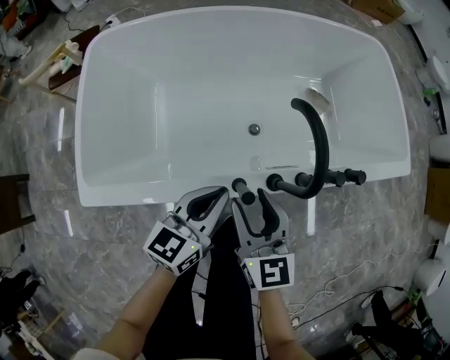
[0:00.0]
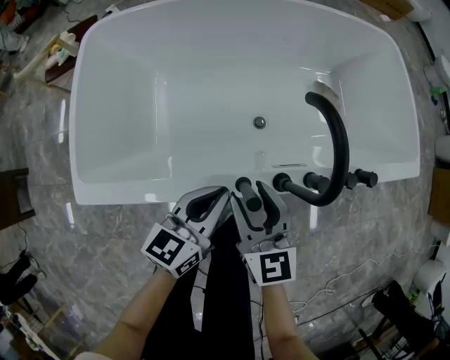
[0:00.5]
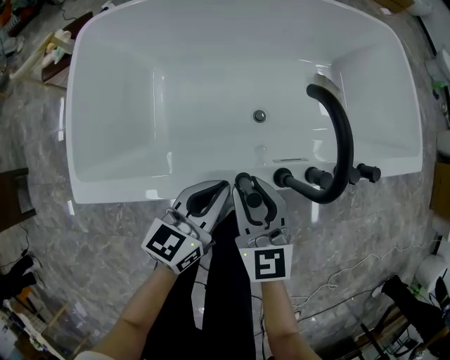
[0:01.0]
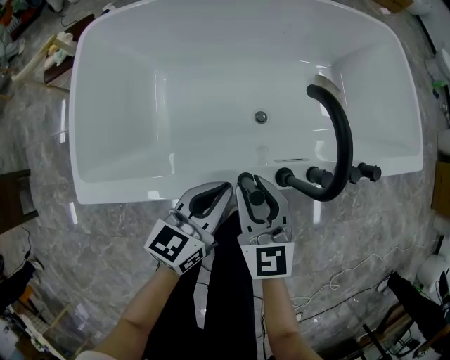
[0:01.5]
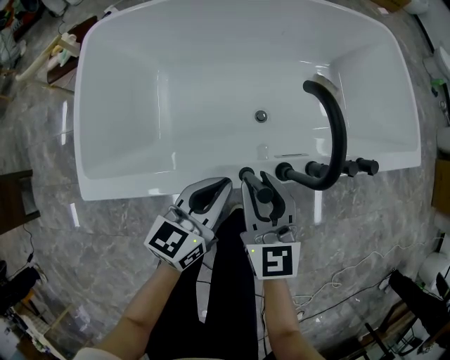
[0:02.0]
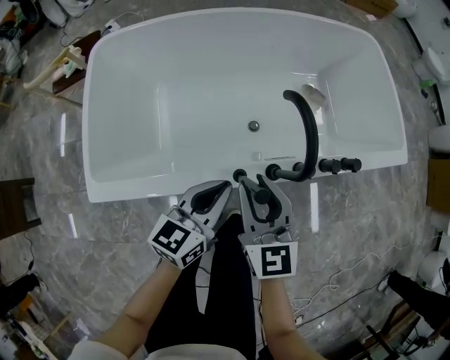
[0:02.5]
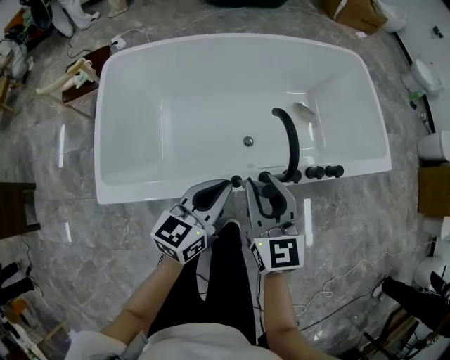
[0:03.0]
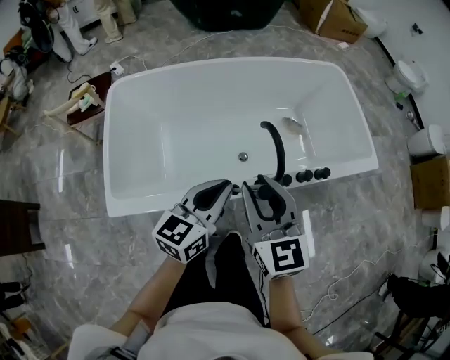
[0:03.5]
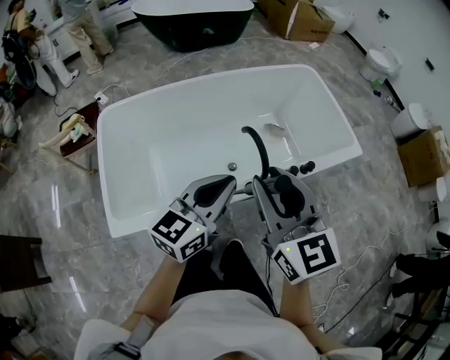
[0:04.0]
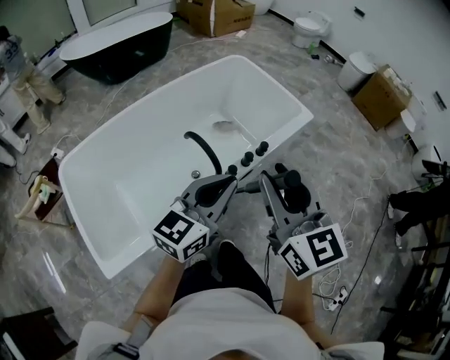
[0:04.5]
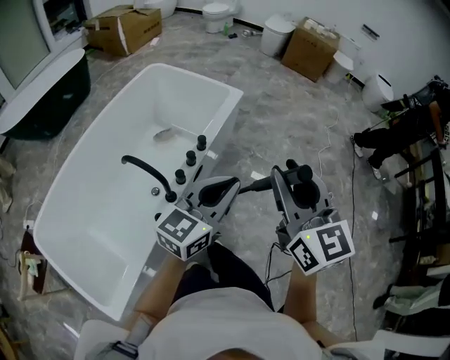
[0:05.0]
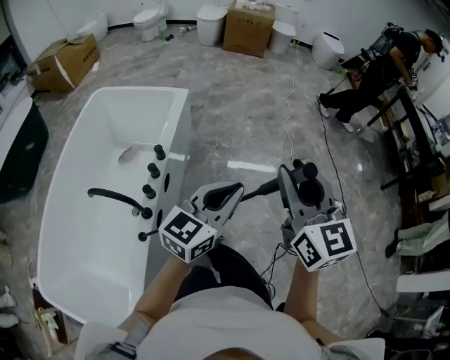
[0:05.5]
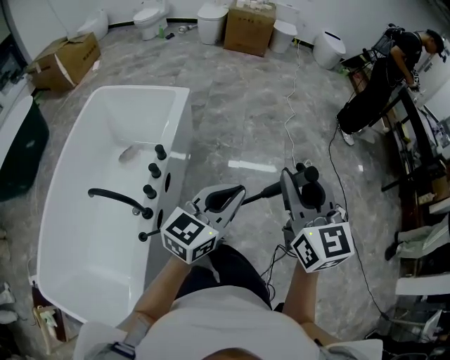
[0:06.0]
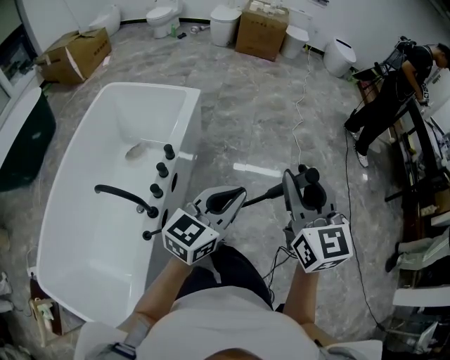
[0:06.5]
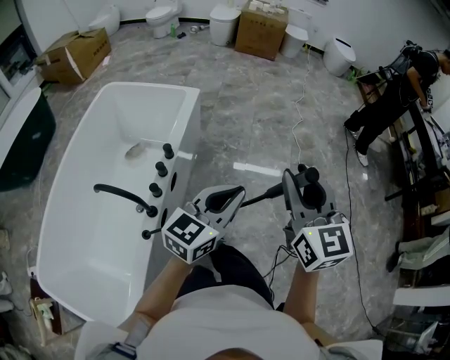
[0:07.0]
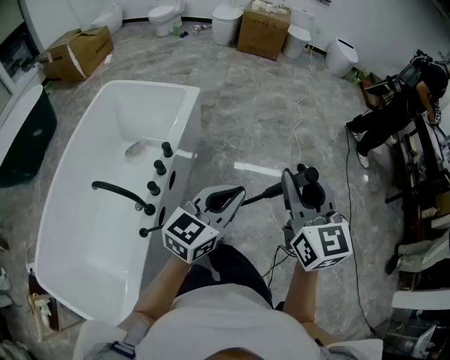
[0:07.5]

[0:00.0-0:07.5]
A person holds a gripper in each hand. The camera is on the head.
0:00.0 to 0:02.0: There are only small adjustments of the grippers.
0:02.0 to 0:04.0: The two grippers go approximately 30 cm upward. The left gripper changes its angle by roughly 20 degrees.
0:04.0 to 0:05.5: The right gripper ends up approximately 40 cm from where it was, and turns by roughly 70 degrees. Meanwhile the left gripper moves some 40 cm, and rotates approximately 70 degrees.
0:05.5 to 0:07.5: There are only small adjustments of the grippers.

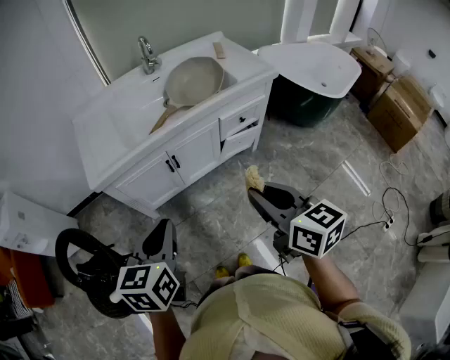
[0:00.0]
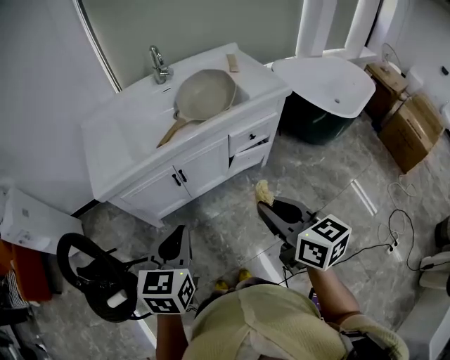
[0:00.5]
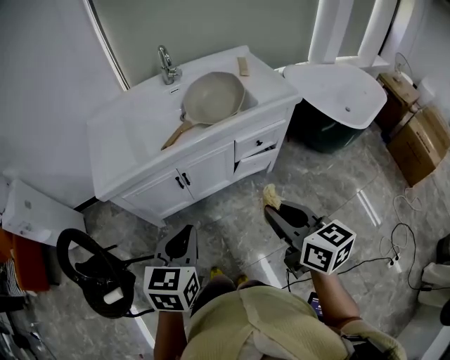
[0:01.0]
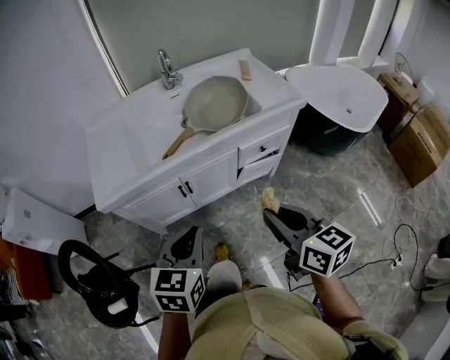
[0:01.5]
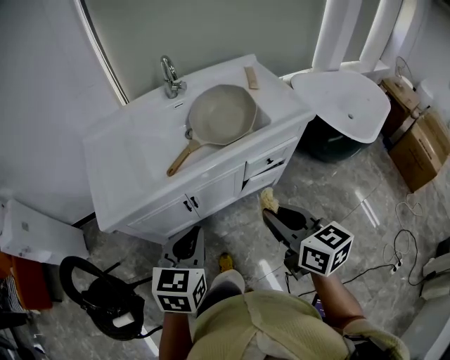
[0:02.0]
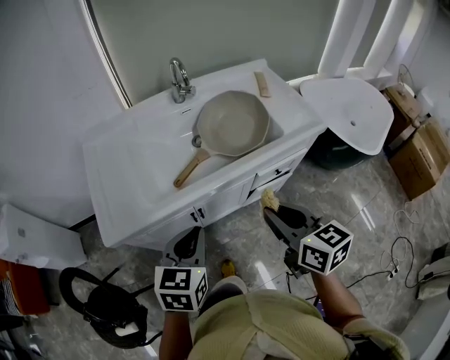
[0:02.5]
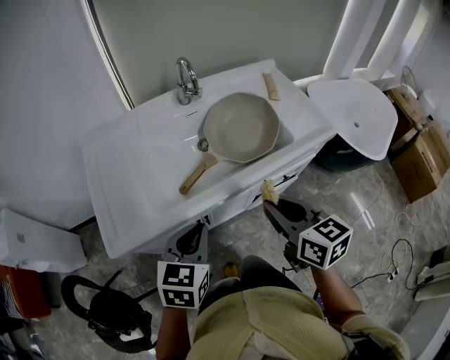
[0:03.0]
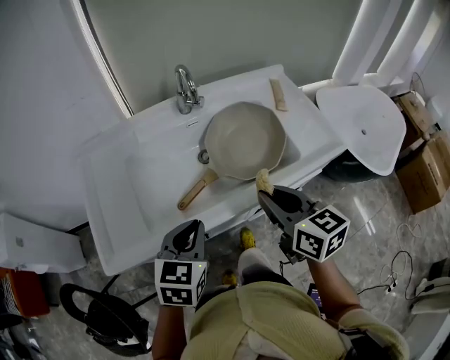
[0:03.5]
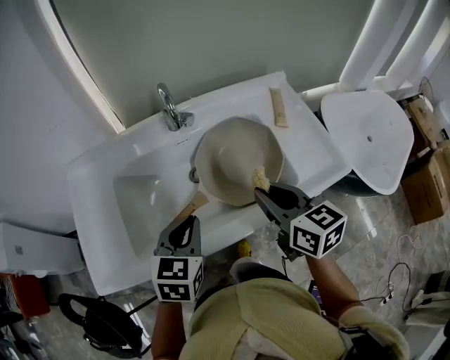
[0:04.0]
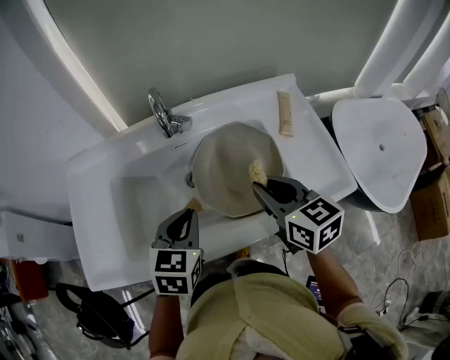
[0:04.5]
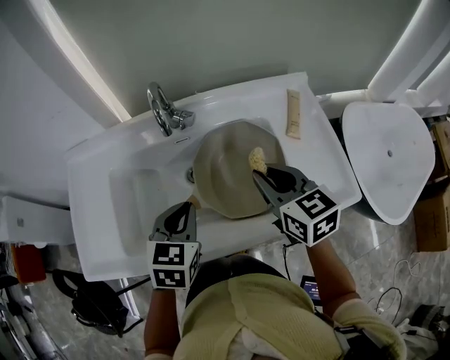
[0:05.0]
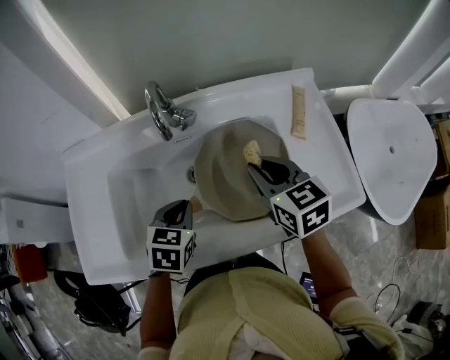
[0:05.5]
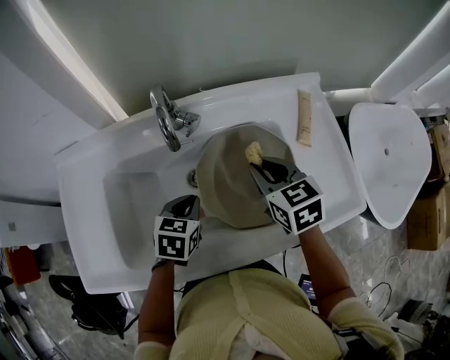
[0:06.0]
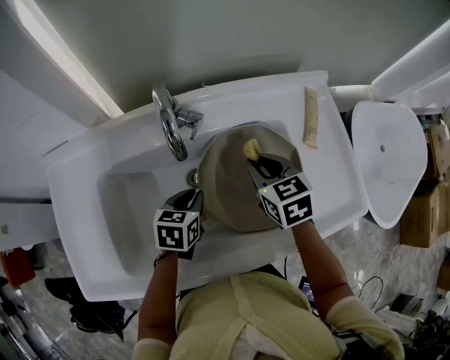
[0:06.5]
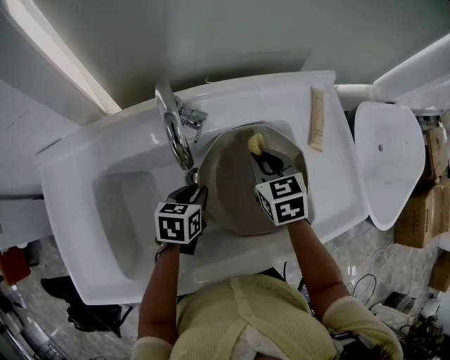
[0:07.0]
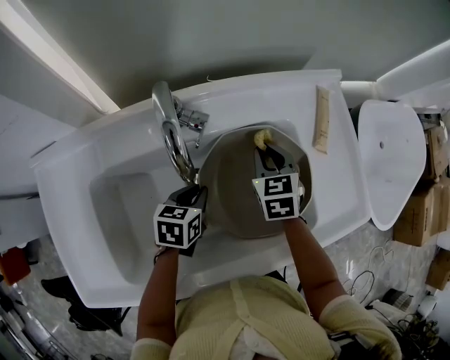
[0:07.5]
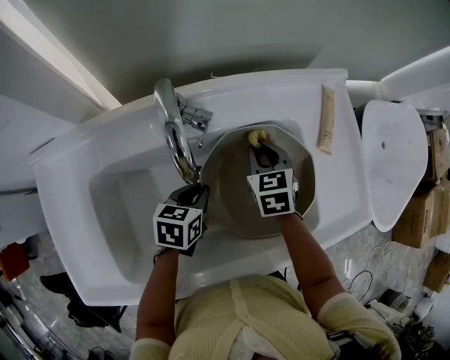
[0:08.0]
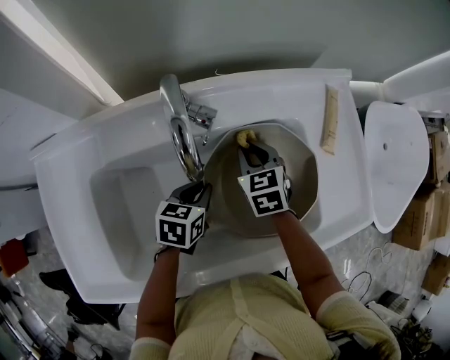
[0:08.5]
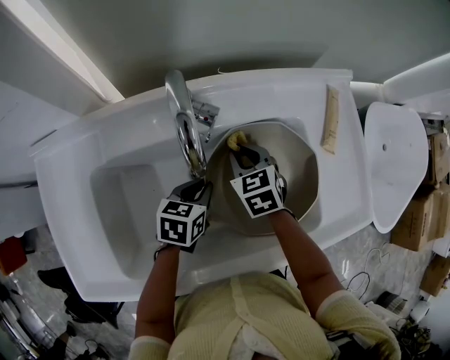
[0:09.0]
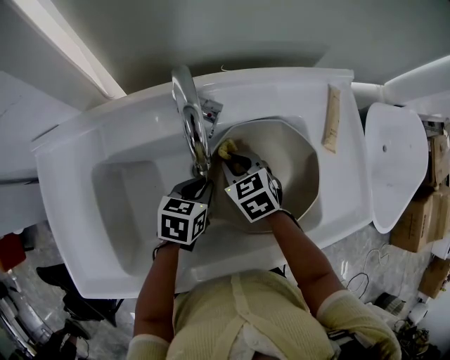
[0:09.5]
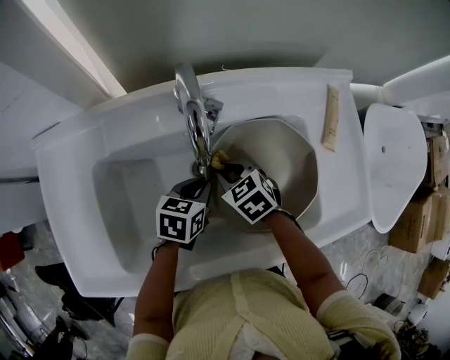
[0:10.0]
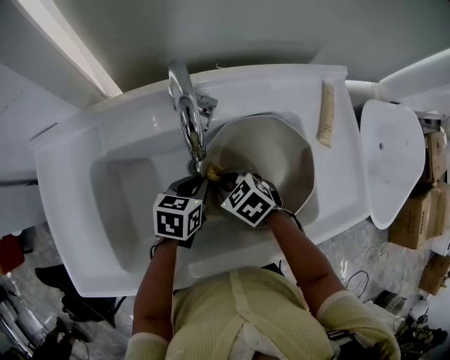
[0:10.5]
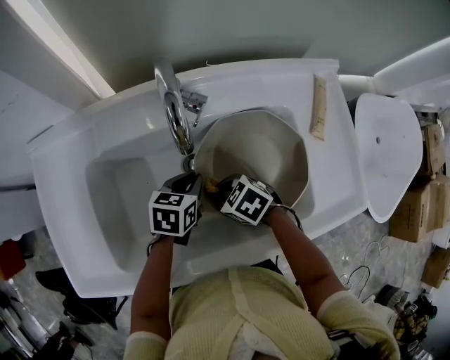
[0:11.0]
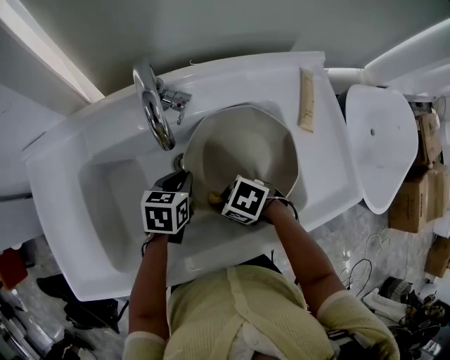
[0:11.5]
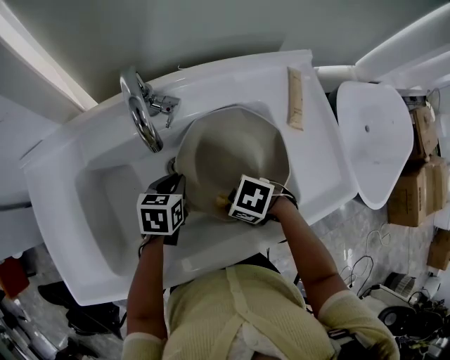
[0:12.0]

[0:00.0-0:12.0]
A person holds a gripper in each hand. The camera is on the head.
0:00.0 to 0:02.0: Both grippers move forward, approximately 15 cm.
0:02.0 to 0:04.0: Both grippers travel together forward, some 30 cm.
0:04.0 to 0:06.0: Both grippers move forward and downward, roughly 20 cm. The right gripper rotates about 20 degrees.
0:06.0 to 0:08.0: The right gripper goes some 15 cm downward and forward, while the left gripper goes about 10 cm downward and forward.
0:08.0 to 0:10.0: The right gripper moves to the left and backward, about 15 cm, and swivels some 30 degrees.
0:10.0 to 0:12.0: The right gripper moves roughly 15 cm, and rotates about 40 degrees.

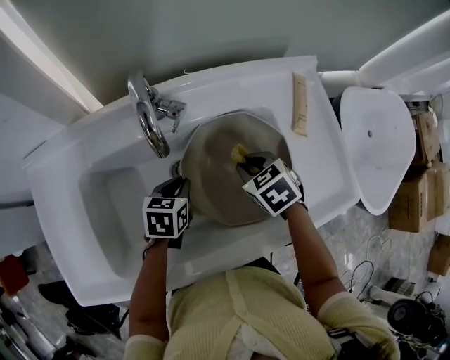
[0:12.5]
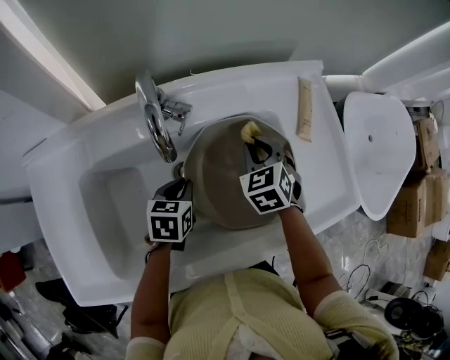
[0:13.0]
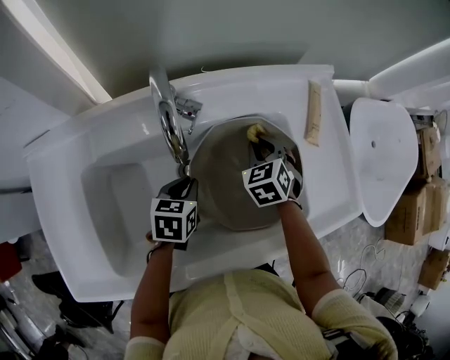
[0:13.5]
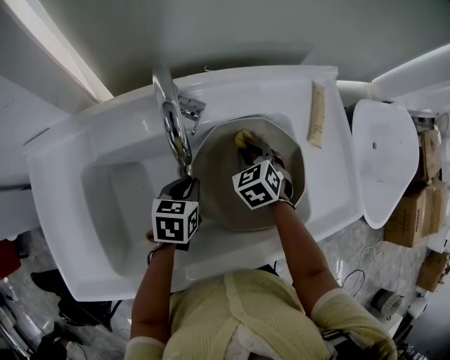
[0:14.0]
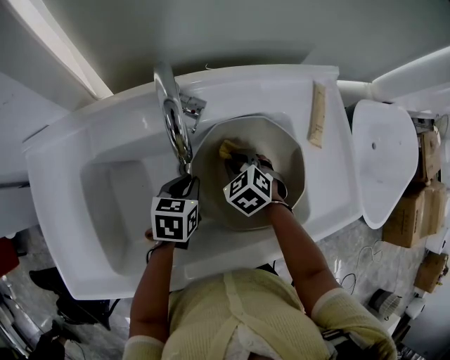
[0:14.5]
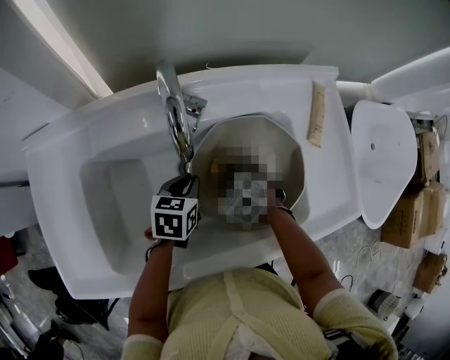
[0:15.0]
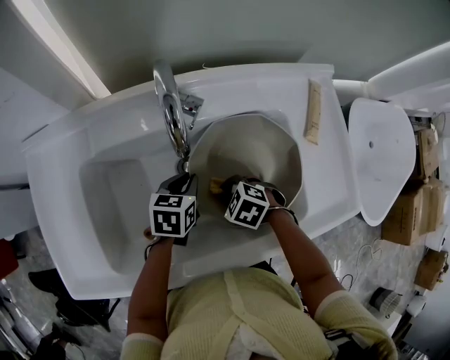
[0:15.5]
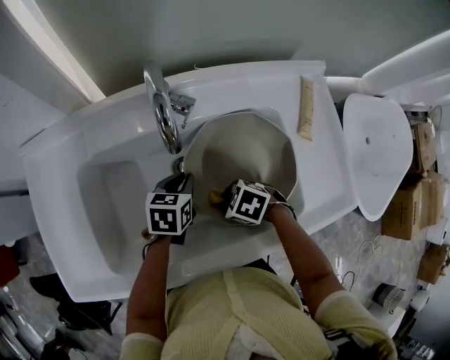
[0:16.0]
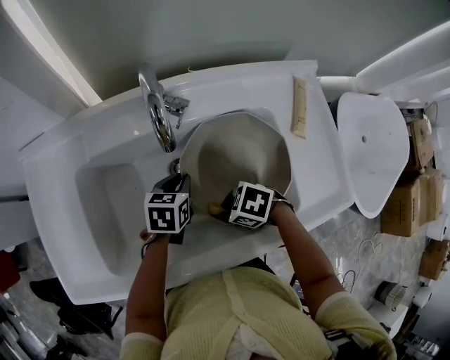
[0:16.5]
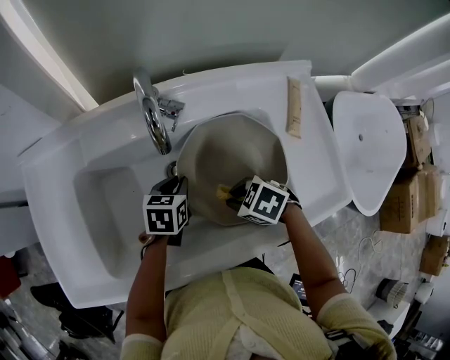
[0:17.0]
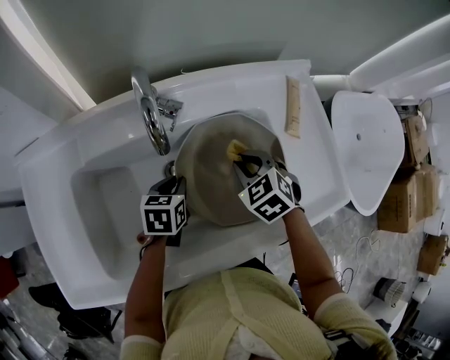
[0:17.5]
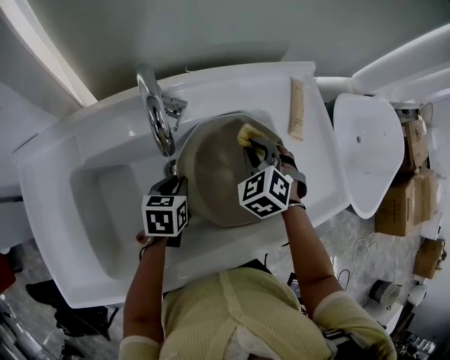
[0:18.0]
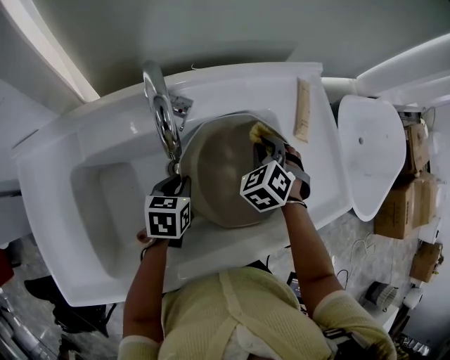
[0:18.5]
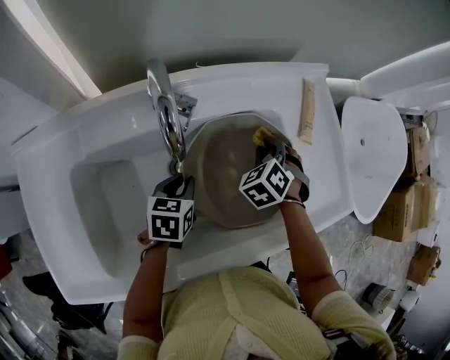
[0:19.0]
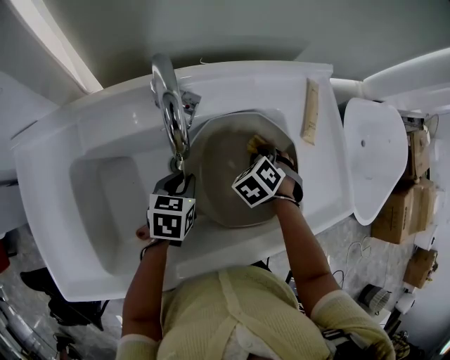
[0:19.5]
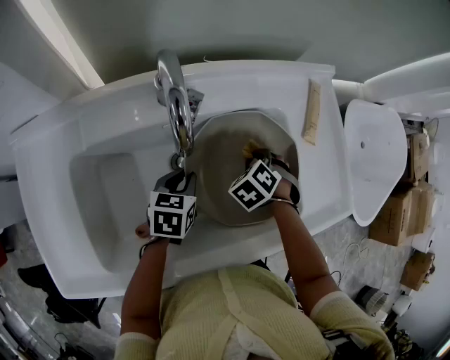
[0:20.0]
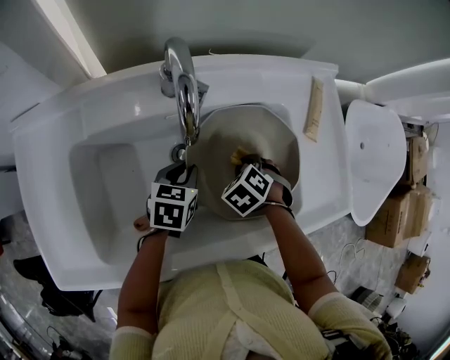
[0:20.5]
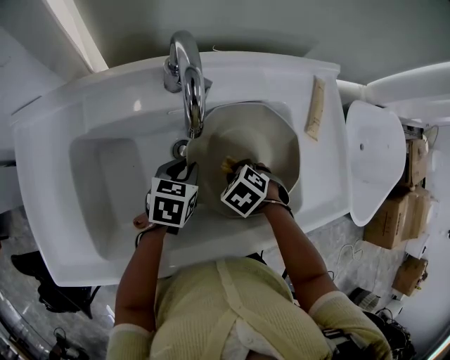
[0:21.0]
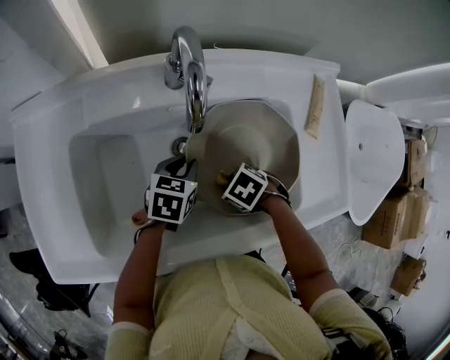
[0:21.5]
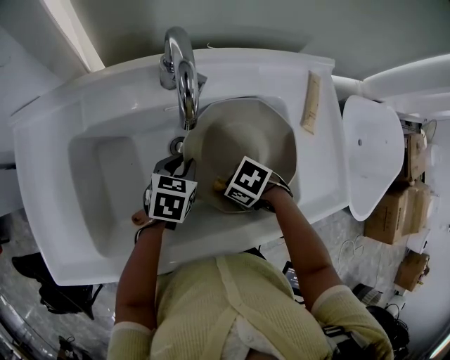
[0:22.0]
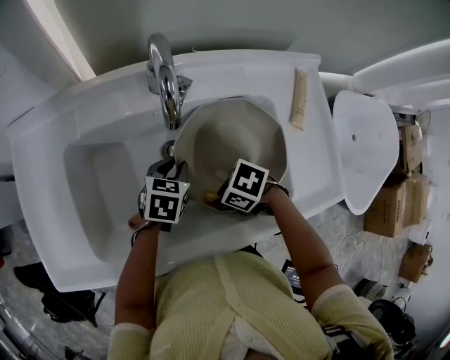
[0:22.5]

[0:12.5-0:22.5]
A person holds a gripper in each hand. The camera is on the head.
0:12.5 to 0:14.5: The right gripper goes roughly 10 cm downward and to the left.
0:14.5 to 0:16.5: The right gripper moves roughly 15 cm, and rotates roughly 50 degrees.
0:16.5 to 0:18.5: The right gripper moves some 25 cm, and rotates roughly 70 degrees.
0:18.5 to 0:20.5: The right gripper moves roughly 15 cm, and changes its angle by approximately 30 degrees.
0:20.5 to 0:22.5: The right gripper ends up some 15 cm from where it was, and swivels roughly 50 degrees.
